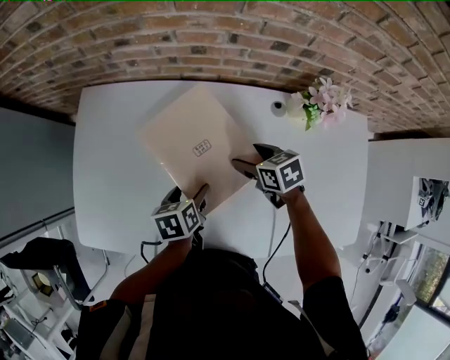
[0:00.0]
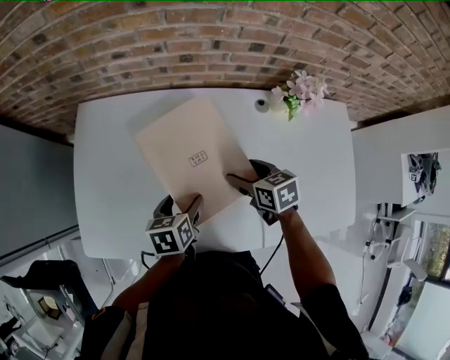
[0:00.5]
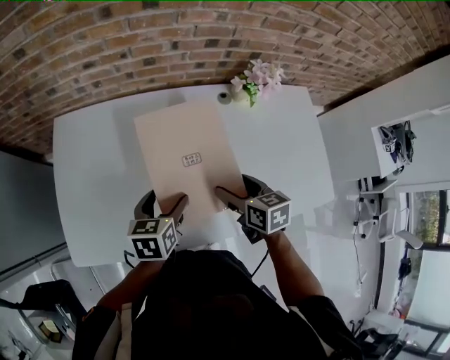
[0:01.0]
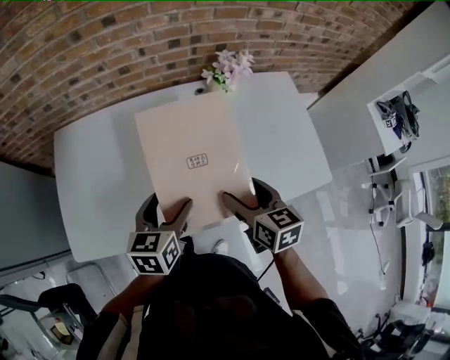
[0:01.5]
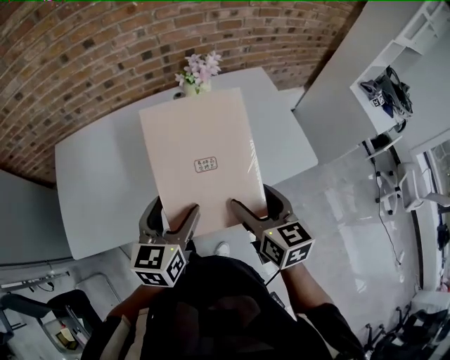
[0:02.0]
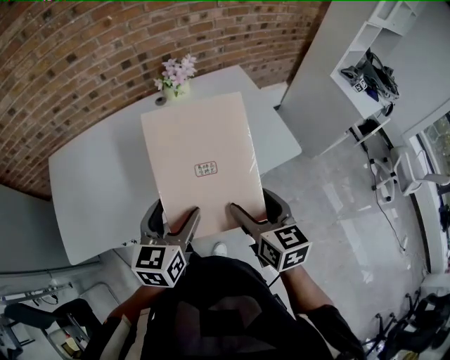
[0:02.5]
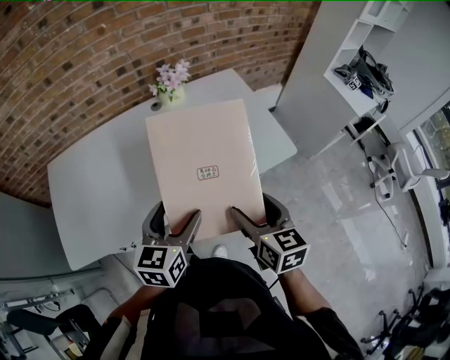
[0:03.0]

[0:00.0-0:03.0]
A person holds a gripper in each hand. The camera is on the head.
0:00.0 to 0:01.5: The left gripper moves upward, some 15 cm, and changes its angle by approximately 40 degrees. Meanwhile the right gripper shifts by roughly 30 cm, and changes its angle by approximately 40 degrees.
0:01.5 to 0:03.0: Both grippers move to the right and backward, about 20 cm.

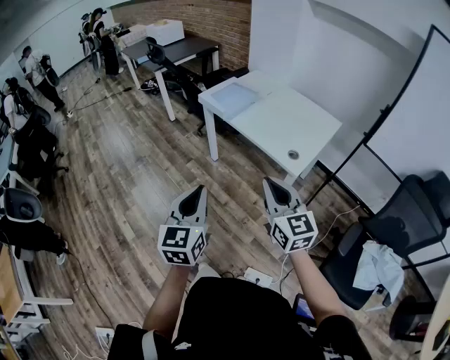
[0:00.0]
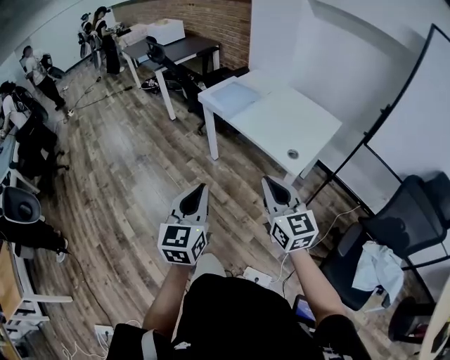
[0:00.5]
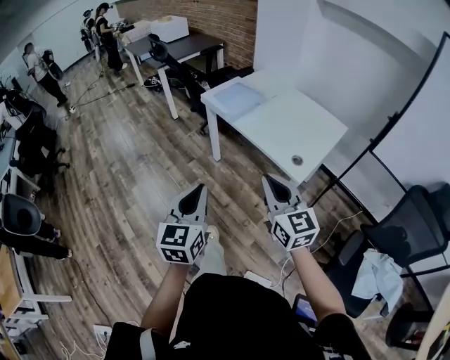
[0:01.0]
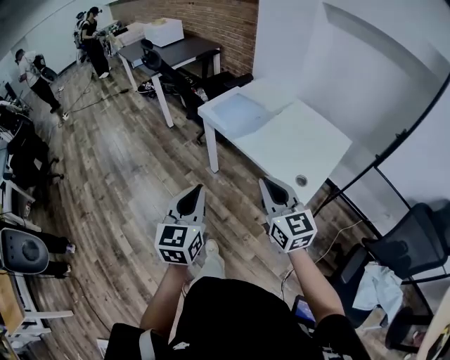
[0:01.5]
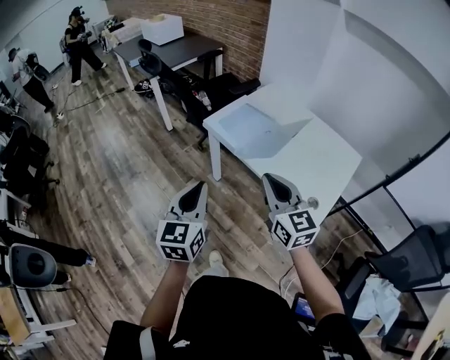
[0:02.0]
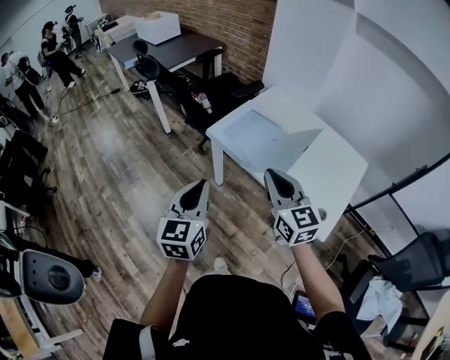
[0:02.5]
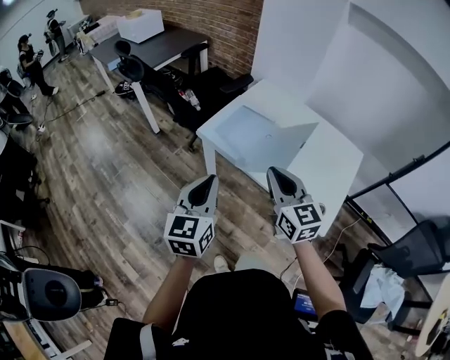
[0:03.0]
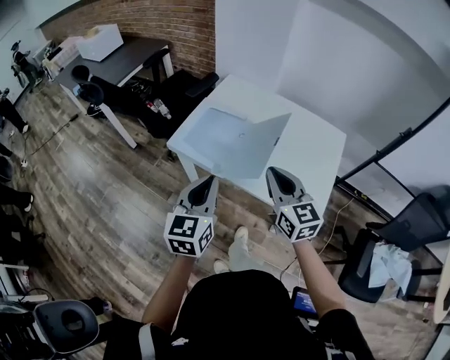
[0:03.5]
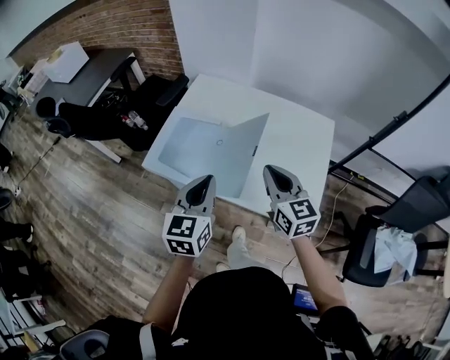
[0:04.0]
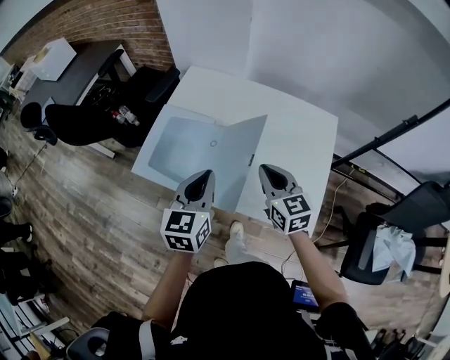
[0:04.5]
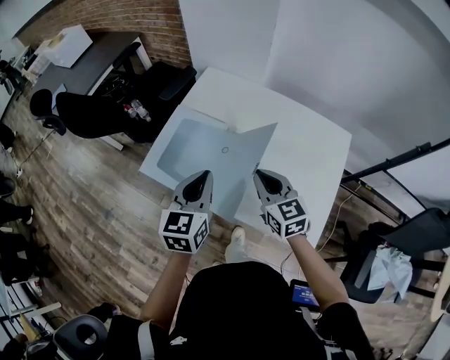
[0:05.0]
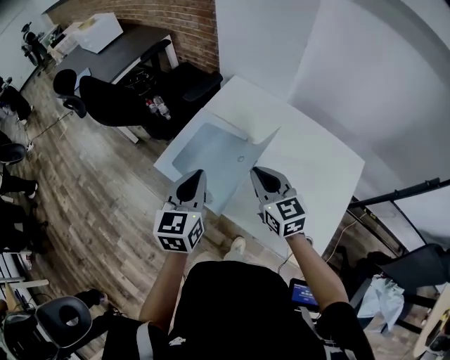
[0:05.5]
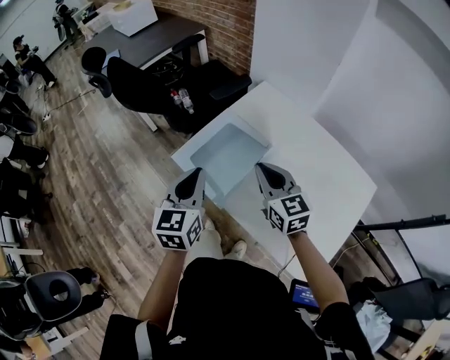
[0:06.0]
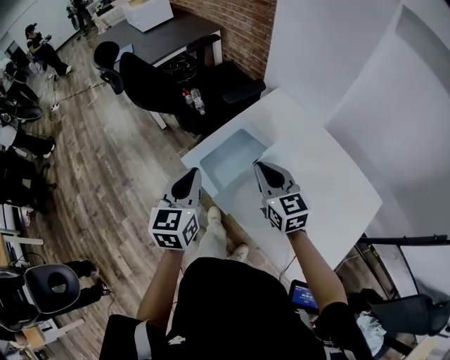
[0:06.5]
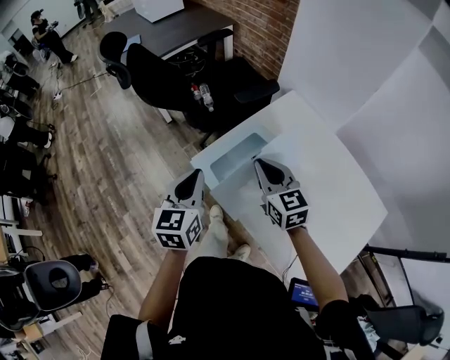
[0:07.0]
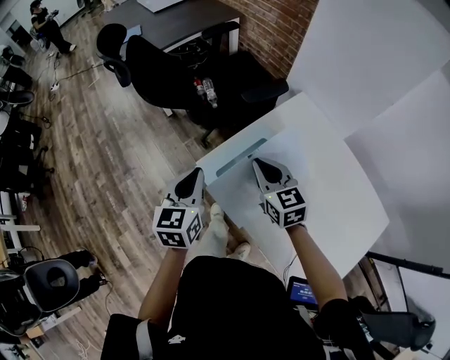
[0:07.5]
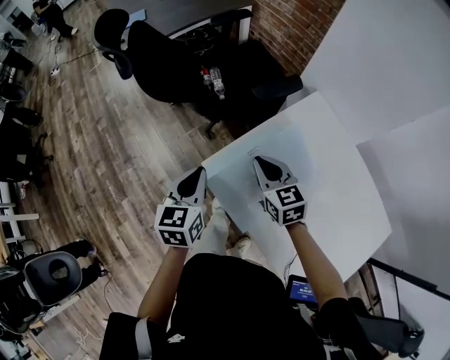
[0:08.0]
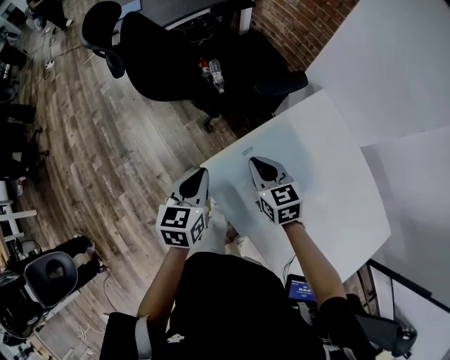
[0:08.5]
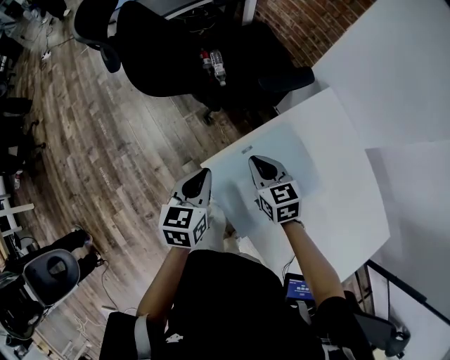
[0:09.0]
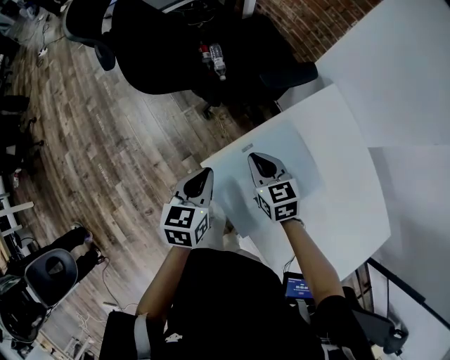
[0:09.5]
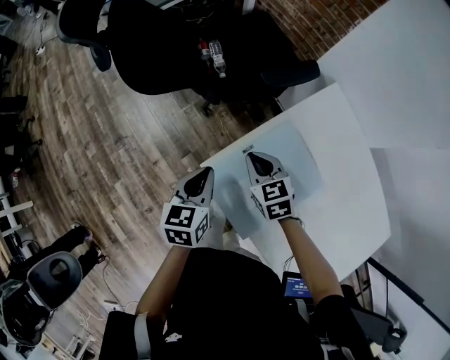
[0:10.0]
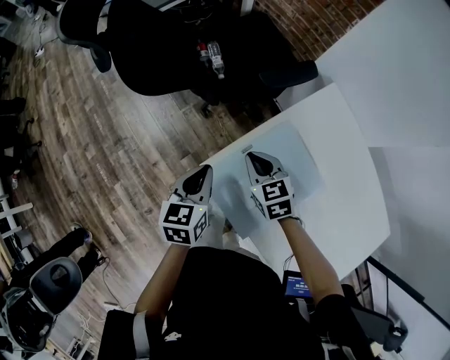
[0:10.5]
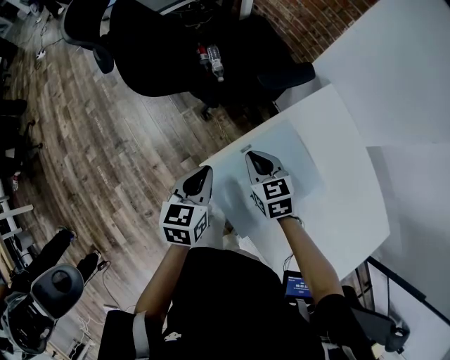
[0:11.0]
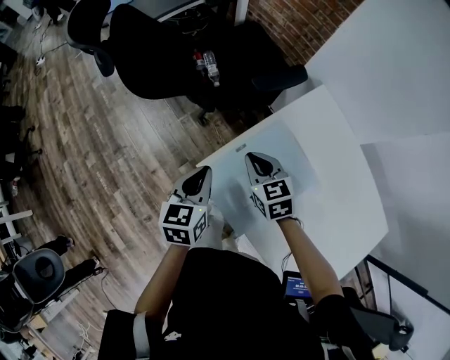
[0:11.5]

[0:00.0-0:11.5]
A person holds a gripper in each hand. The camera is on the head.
0:00.0 to 0:02.0: The two grippers go about 30 cm forward.
0:02.0 to 0:04.0: The left gripper ends up about 30 cm from where it was, and rotates some 30 degrees, while the right gripper ends up approximately 25 cm from where it was, and changes its angle by roughly 30 degrees.
0:04.0 to 0:06.0: The right gripper shifts by some 20 cm, and swivels roughly 30 degrees; the left gripper moves about 15 cm, and turns by approximately 30 degrees.
0:06.0 to 0:07.5: The two grippers go roughly 15 cm forward and to the left.
0:07.5 to 0:09.5: The grippers both shift downward and forward by some 15 cm.
0:09.5 to 0:11.5: The grippers stay close to where they were, moving slightly.

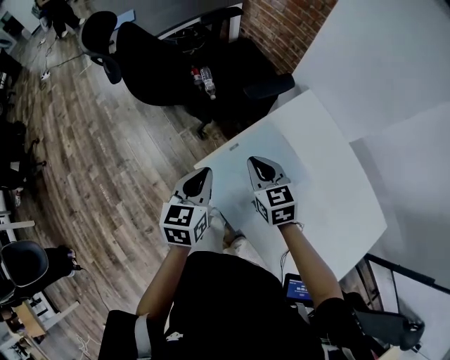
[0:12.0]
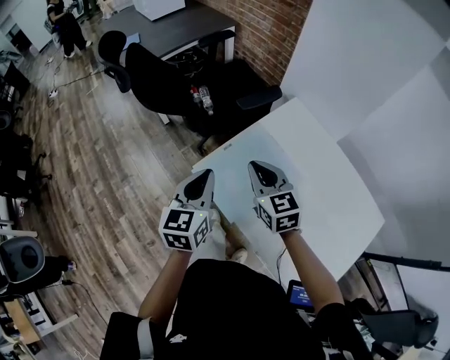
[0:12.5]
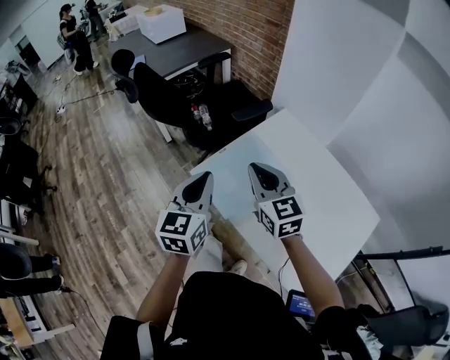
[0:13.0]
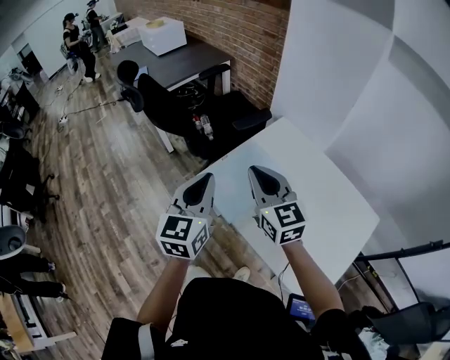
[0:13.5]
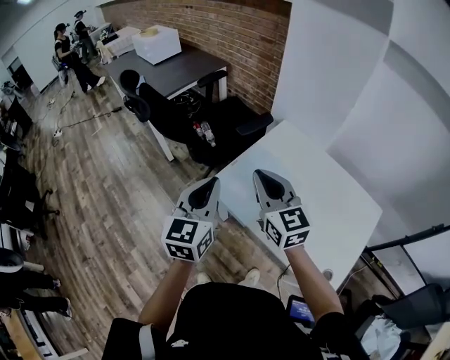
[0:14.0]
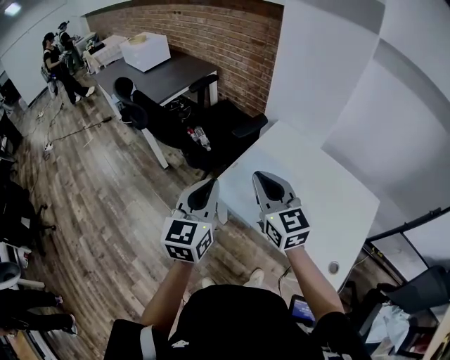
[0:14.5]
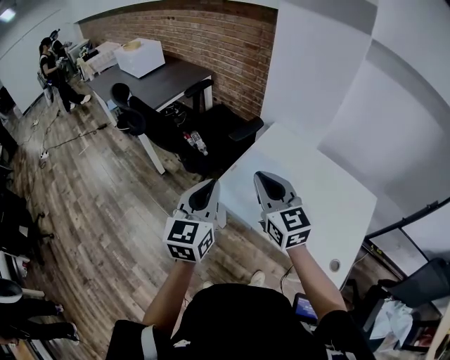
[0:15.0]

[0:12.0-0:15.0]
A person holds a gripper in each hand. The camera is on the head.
0:12.0 to 0:13.5: Both grippers travel together upward and backward, roughly 25 cm. The left gripper rotates roughly 20 degrees. Meanwhile the right gripper changes its angle by roughly 20 degrees.
0:13.5 to 0:15.0: Both grippers move to the left, roughly 10 cm.

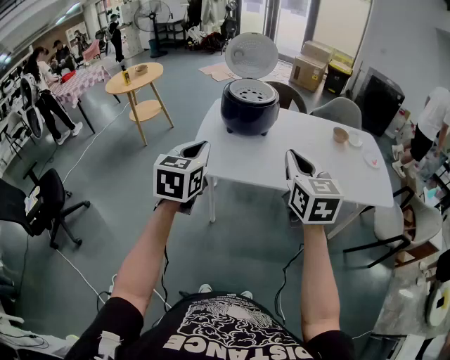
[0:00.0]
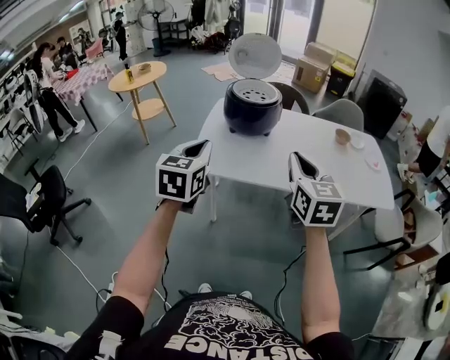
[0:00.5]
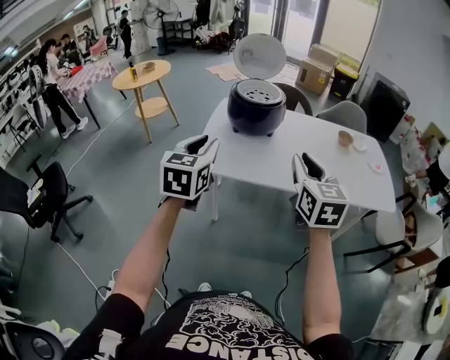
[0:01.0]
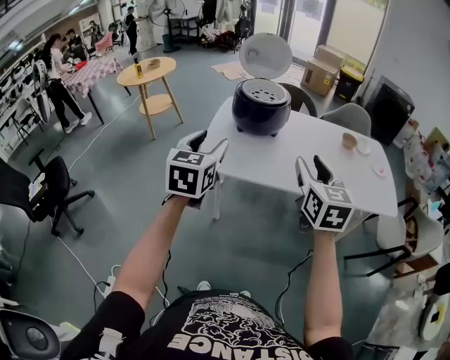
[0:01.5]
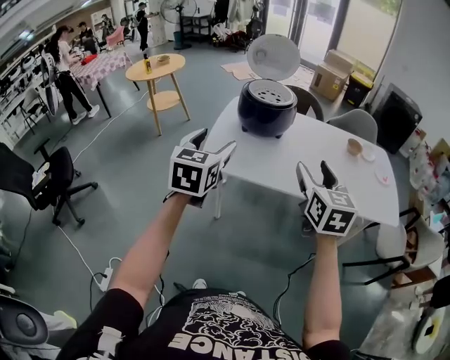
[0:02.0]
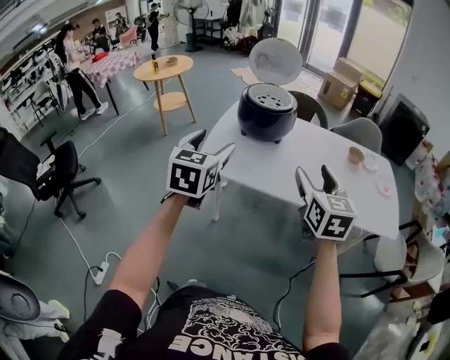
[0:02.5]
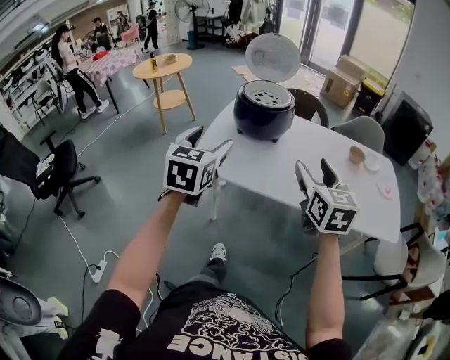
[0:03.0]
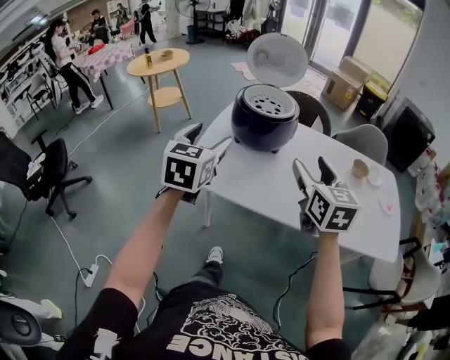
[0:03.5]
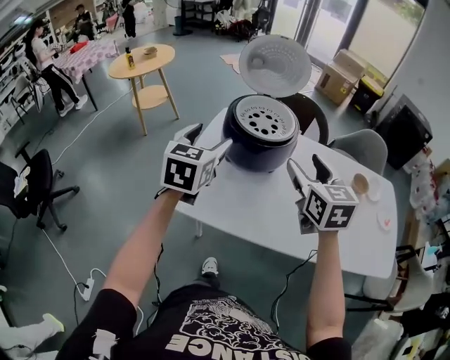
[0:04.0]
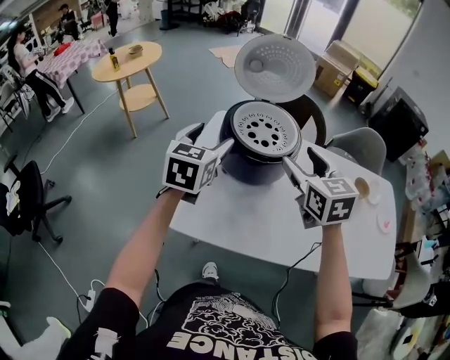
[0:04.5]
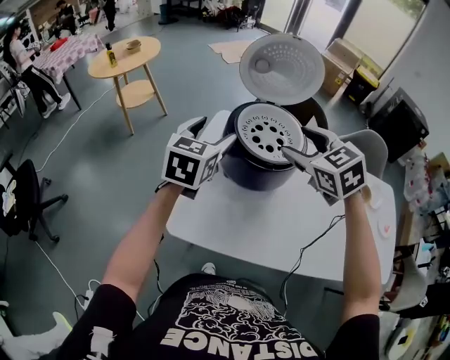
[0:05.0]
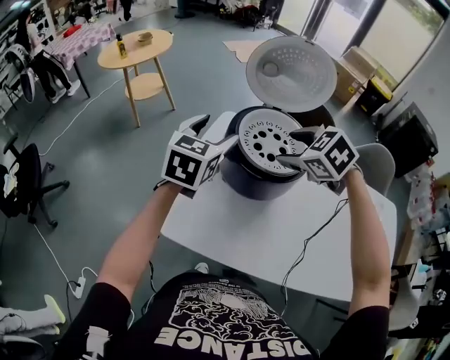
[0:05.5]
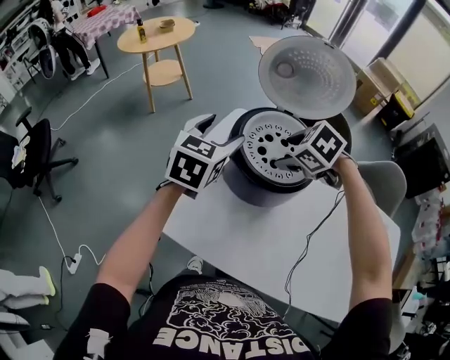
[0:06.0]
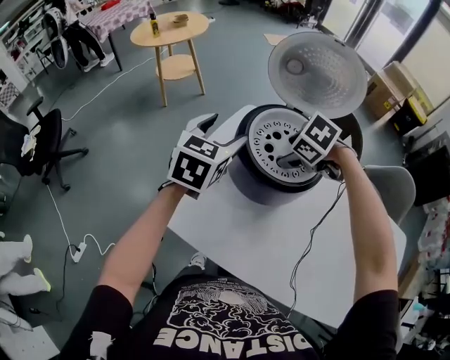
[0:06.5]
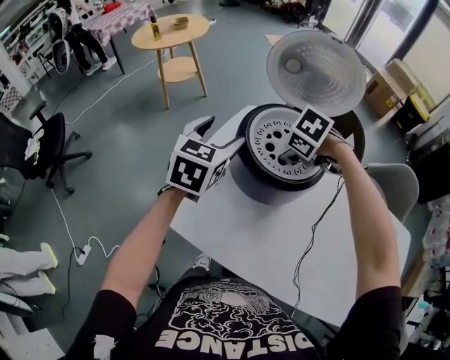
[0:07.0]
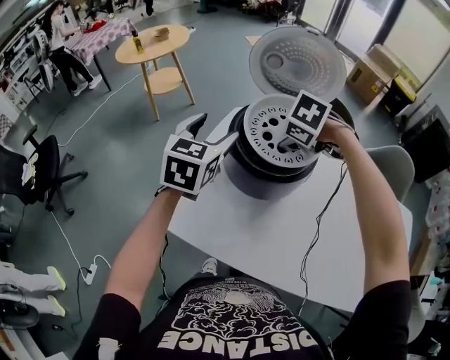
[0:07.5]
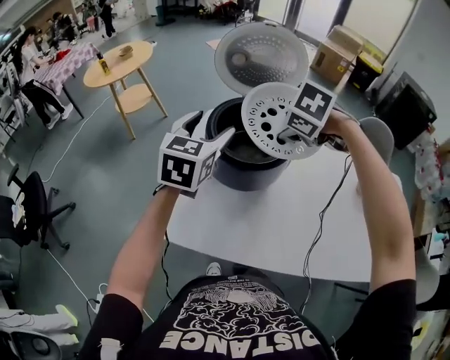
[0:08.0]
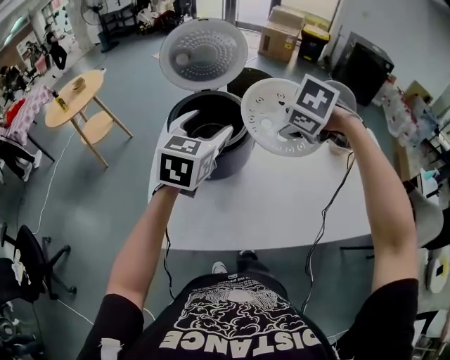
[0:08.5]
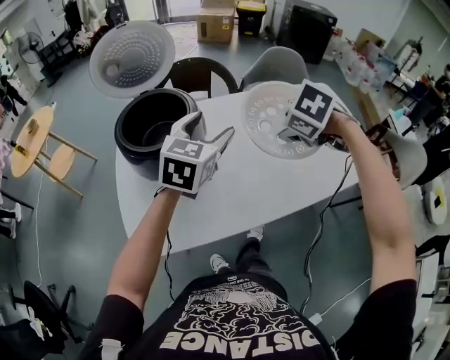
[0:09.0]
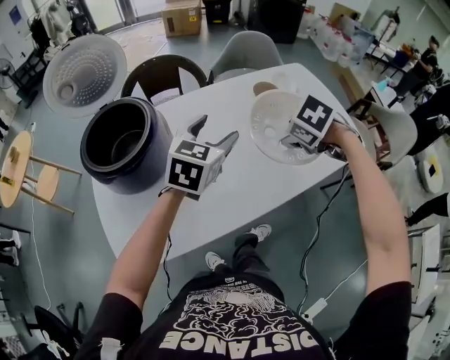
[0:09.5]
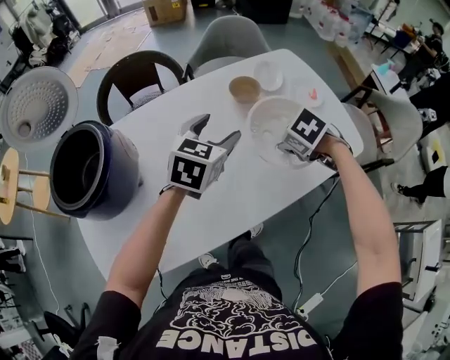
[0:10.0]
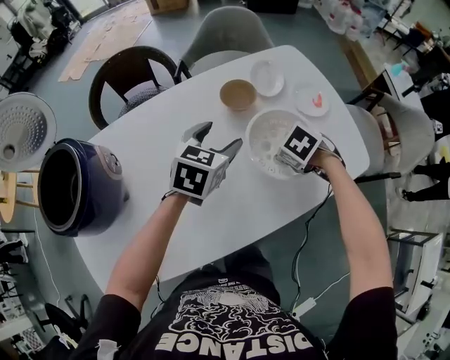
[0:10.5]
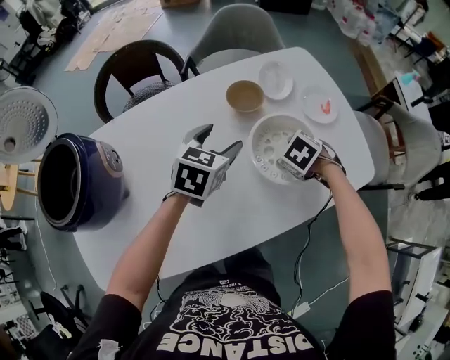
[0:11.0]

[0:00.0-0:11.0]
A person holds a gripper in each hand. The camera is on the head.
0:00.0 to 0:02.0: The right gripper opens. Meanwhile the left gripper opens up.
0:02.0 to 0:03.5: The grippers both shift forward by approximately 20 cm.
0:03.5 to 0:05.5: The two grippers travel together, forward, some 50 cm. The right gripper tilts its fingers roughly 40 degrees downward.
0:05.5 to 0:07.5: The right gripper shifts some 5 cm downward, and rotates about 20 degrees.
0:07.5 to 0:09.0: The left gripper changes place by some 30 cm, and swivels approximately 40 degrees; the right gripper moves approximately 35 cm, and twists some 40 degrees clockwise, seen from behind.
0:09.0 to 0:11.0: The pair of grippers is taken roughly 40 cm. The left gripper turns by about 20 degrees.
